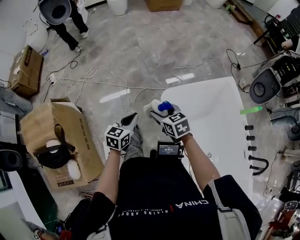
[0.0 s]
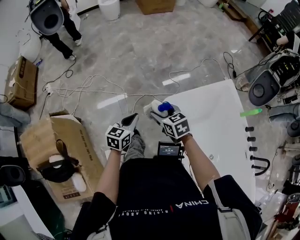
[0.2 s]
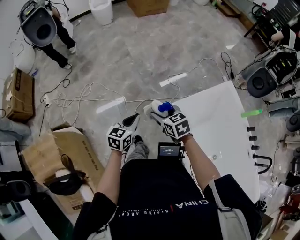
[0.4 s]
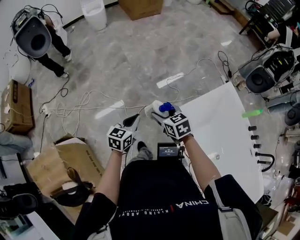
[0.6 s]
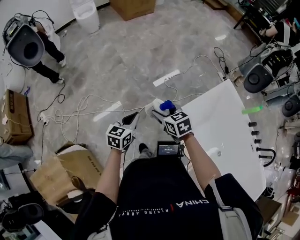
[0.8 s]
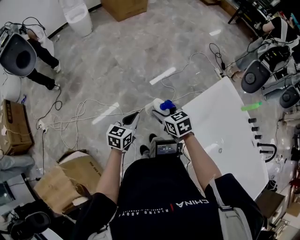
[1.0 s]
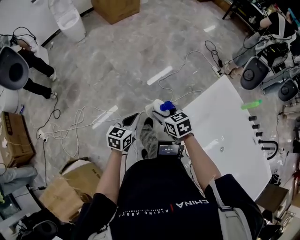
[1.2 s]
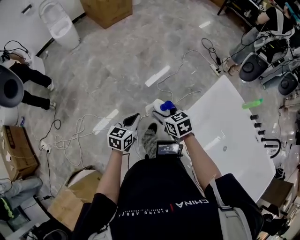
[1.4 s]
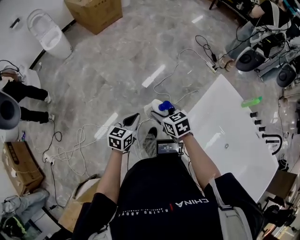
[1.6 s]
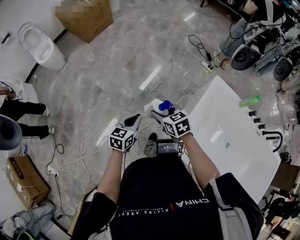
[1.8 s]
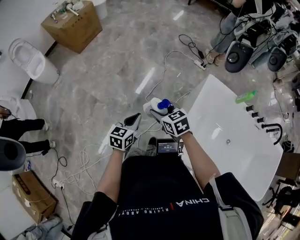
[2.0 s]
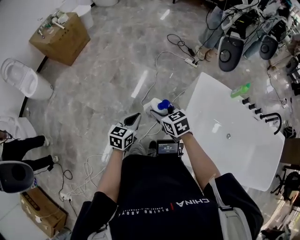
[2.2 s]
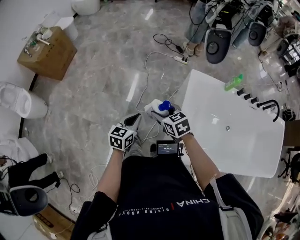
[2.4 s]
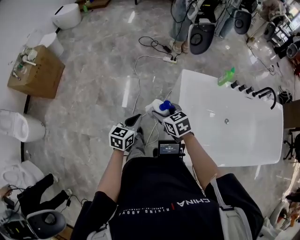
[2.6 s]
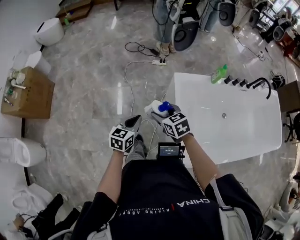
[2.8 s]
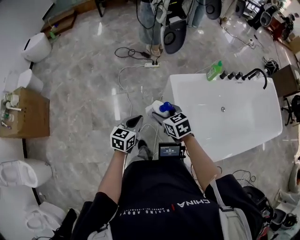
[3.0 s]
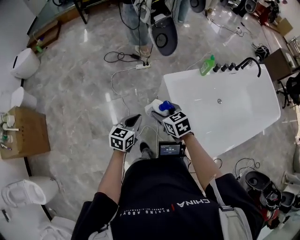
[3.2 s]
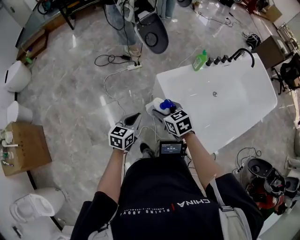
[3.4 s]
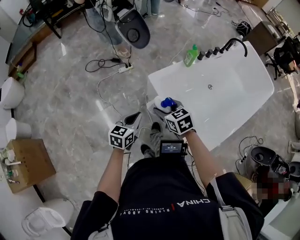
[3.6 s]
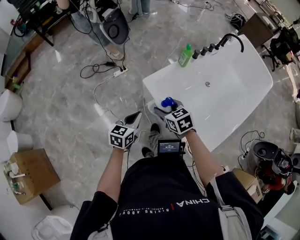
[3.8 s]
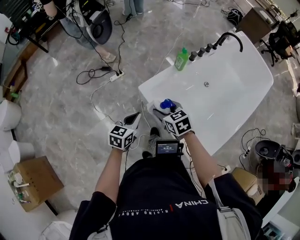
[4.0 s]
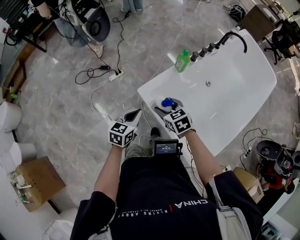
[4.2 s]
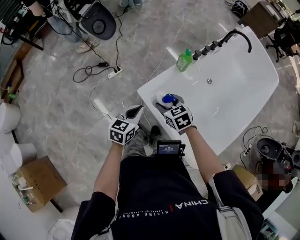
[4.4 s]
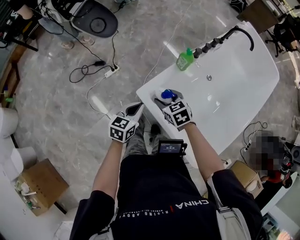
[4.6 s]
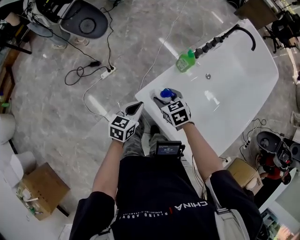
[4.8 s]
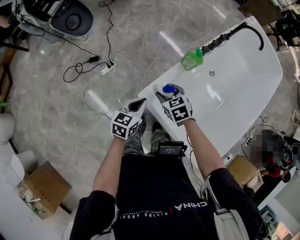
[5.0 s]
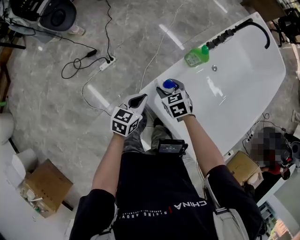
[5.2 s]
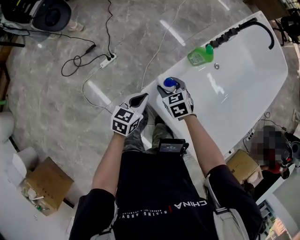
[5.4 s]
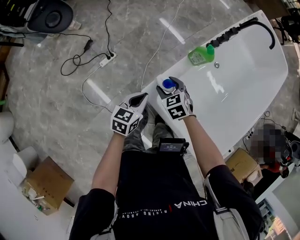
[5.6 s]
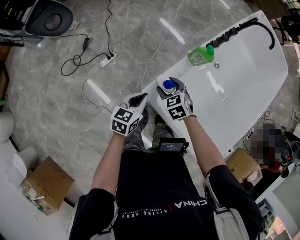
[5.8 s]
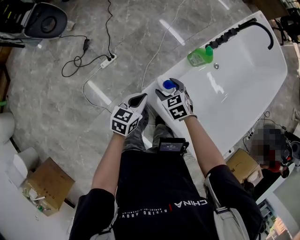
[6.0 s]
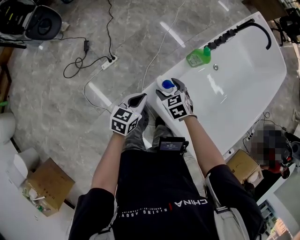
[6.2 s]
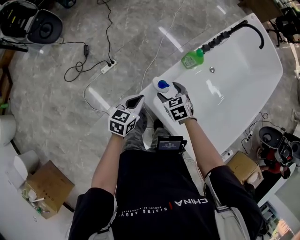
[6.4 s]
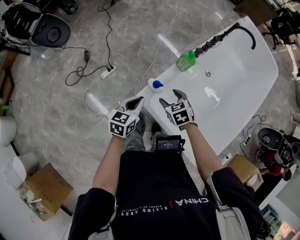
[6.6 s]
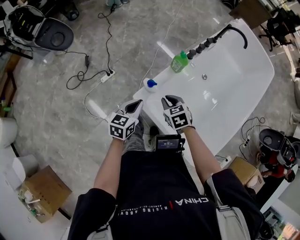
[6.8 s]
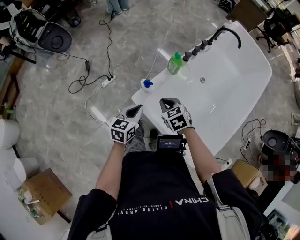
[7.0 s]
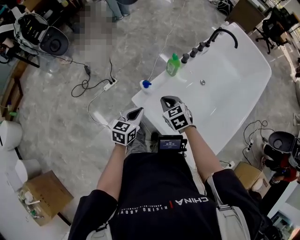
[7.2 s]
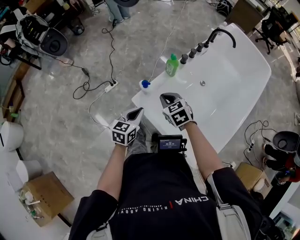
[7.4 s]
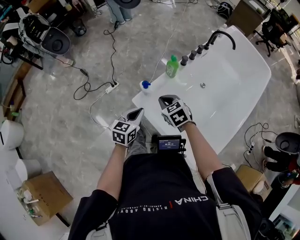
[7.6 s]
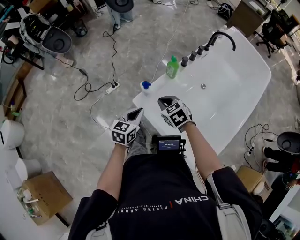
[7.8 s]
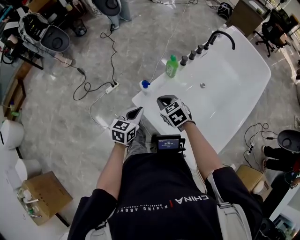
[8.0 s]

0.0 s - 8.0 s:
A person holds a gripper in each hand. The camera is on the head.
0.0 s - 1.6 s: The right gripper changes place by some 40 cm, and changes its angle by about 30 degrees; the left gripper ends up some 40 cm from where it was, and swivels about 30 degrees.
1.6 s - 3.2 s: The pair of grippers is taken about 40 cm. The right gripper swivels about 60 degrees. The left gripper changes its angle by about 60 degrees.
3.2 s - 4.8 s: The left gripper moves approximately 40 cm, and swivels approximately 30 degrees. The right gripper shifts by roughly 40 cm, and changes its angle by about 30 degrees.
4.8 s - 6.4 s: The right gripper moves downward, some 5 cm.
6.4 s - 8.0 s: The left gripper is displaced backward, upward and to the right by roughly 15 cm. Meanwhile the right gripper travels upward and backward by approximately 20 cm, and closes up.

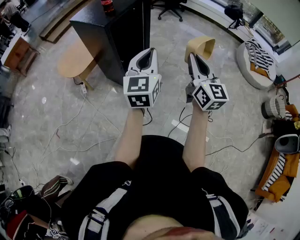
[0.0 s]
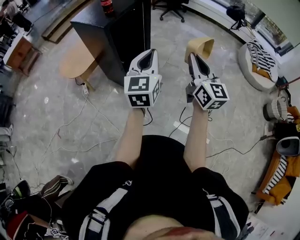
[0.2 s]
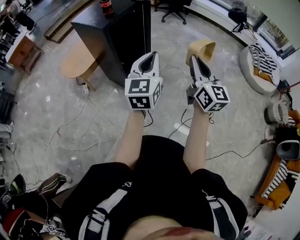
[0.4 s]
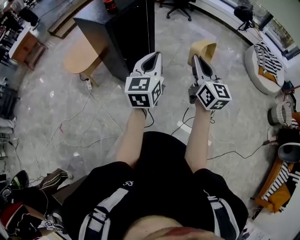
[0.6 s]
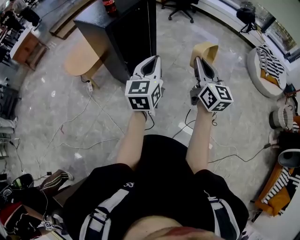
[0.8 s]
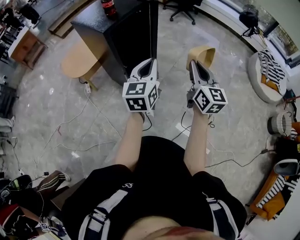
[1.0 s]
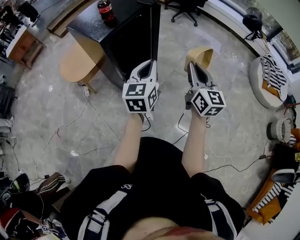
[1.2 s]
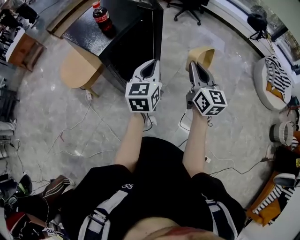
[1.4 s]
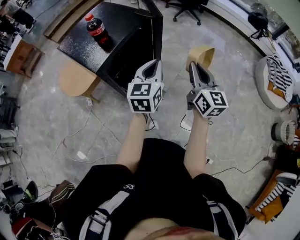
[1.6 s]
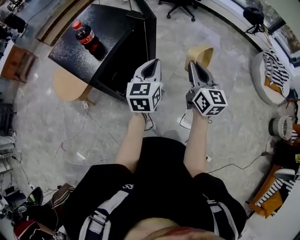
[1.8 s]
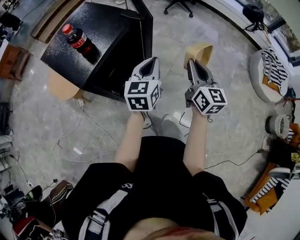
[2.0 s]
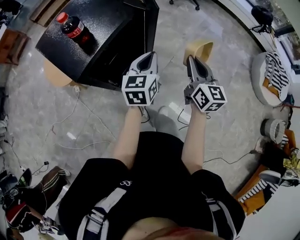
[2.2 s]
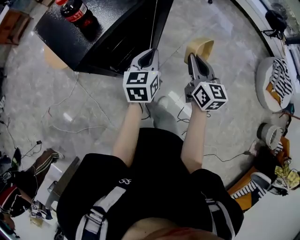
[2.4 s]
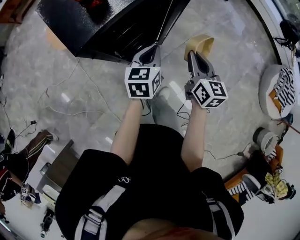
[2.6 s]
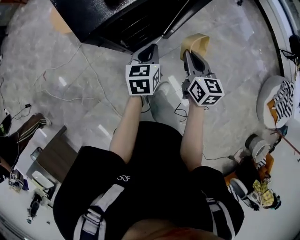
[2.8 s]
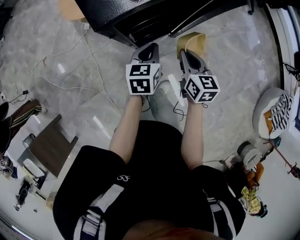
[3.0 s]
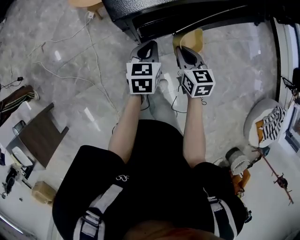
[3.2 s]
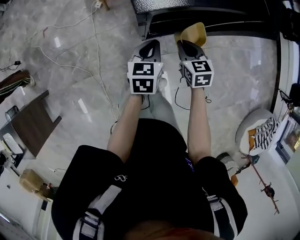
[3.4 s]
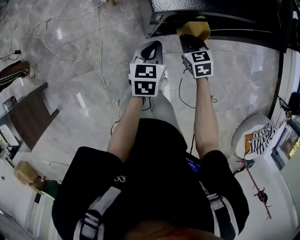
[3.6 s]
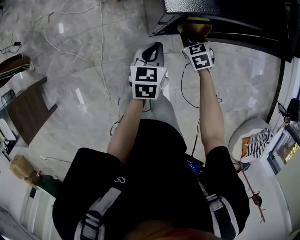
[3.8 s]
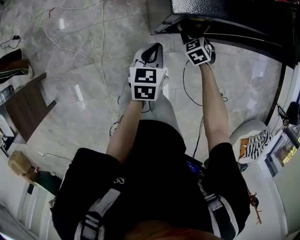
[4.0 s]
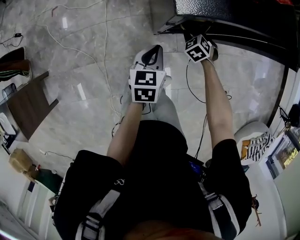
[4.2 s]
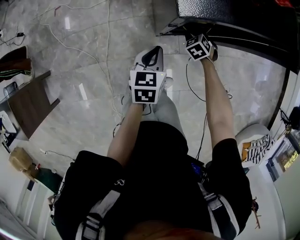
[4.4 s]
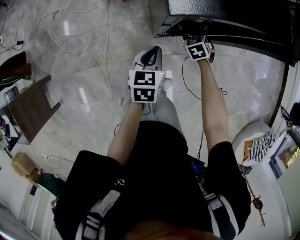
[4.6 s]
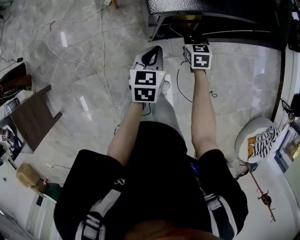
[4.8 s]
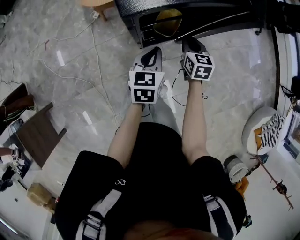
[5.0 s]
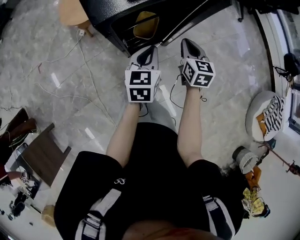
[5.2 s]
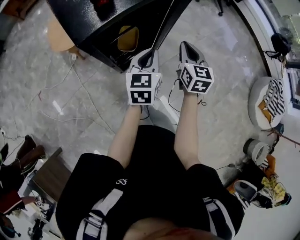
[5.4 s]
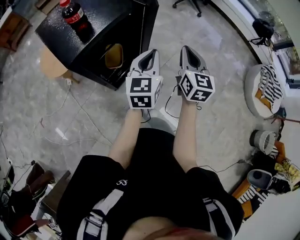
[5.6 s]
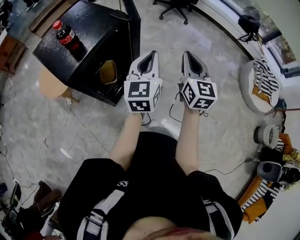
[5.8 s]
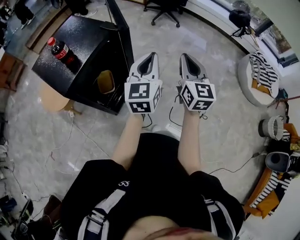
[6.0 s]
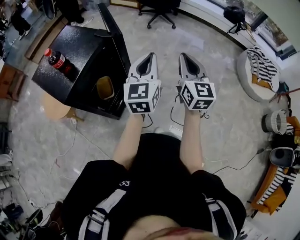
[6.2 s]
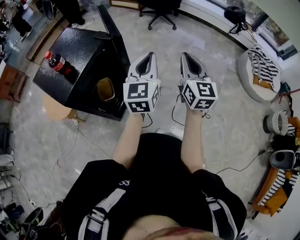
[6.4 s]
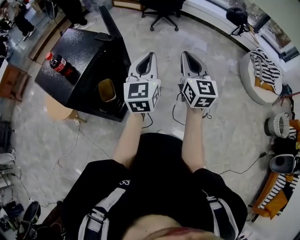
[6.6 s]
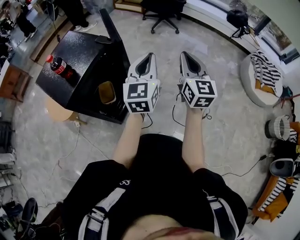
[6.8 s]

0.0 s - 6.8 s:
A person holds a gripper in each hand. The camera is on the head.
0.0 s - 1.4 s: Both grippers move forward, approximately 30 cm.
1.4 s - 2.8 s: The left gripper goes roughly 25 cm downward and forward, and changes its angle by roughly 30 degrees, while the right gripper shifts approximately 25 cm downward, forward and to the left, and rotates some 30 degrees.
2.8 s - 4.0 s: The right gripper ends up roughly 30 cm from where it was, and points its fingers some 30 degrees further downward; the left gripper shifts by approximately 20 cm, and turns by about 20 degrees.
4.0 s - 5.4 s: The left gripper changes place by roughly 25 cm, and rotates about 30 degrees. The right gripper shifts about 25 cm upward, angles its fingers upward, by some 40 degrees, and opens and closes again.
5.4 s - 6.8 s: The right gripper heads to the right and upward, covering about 30 cm, and rotates approximately 30 degrees. Meanwhile the left gripper heads upward and to the right, covering approximately 25 cm, and rotates approximately 30 degrees.

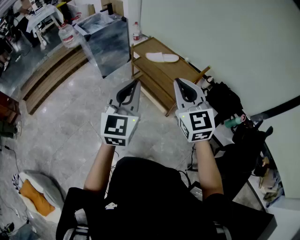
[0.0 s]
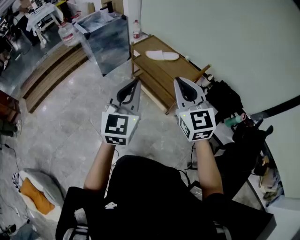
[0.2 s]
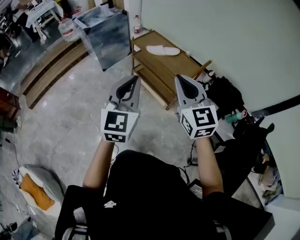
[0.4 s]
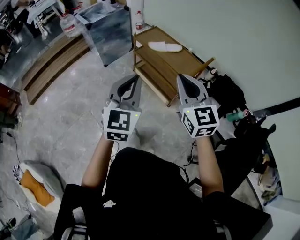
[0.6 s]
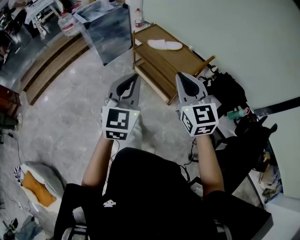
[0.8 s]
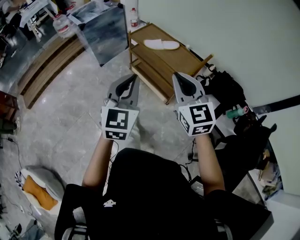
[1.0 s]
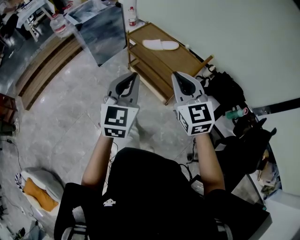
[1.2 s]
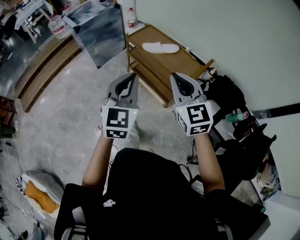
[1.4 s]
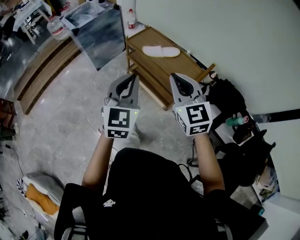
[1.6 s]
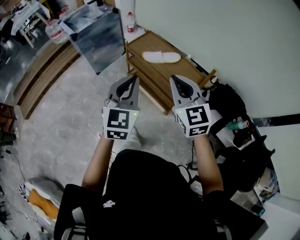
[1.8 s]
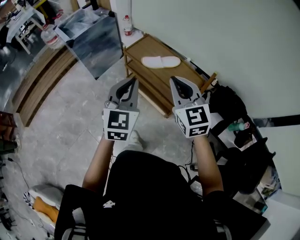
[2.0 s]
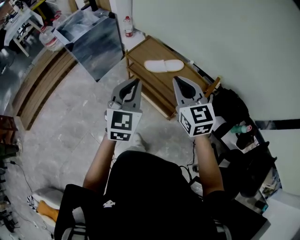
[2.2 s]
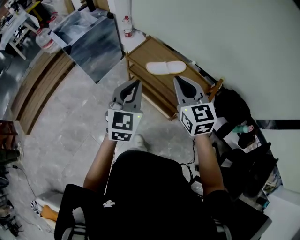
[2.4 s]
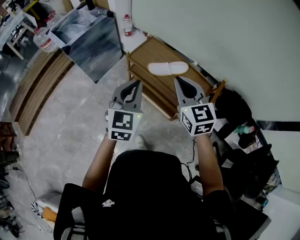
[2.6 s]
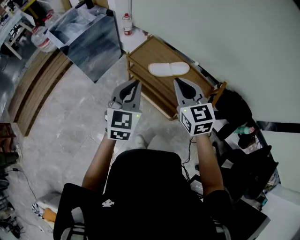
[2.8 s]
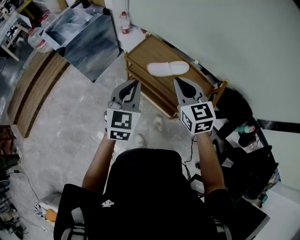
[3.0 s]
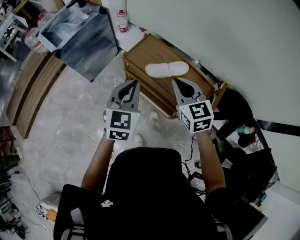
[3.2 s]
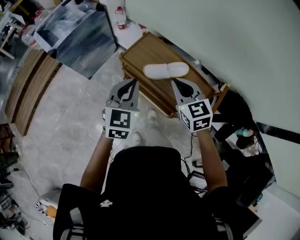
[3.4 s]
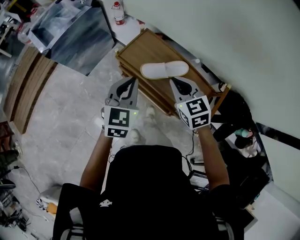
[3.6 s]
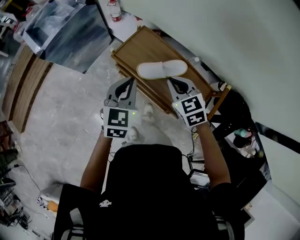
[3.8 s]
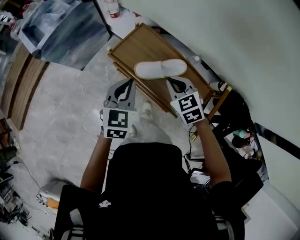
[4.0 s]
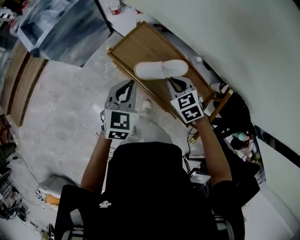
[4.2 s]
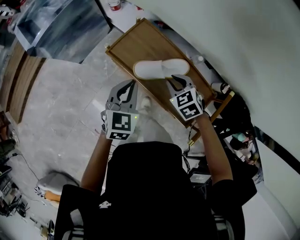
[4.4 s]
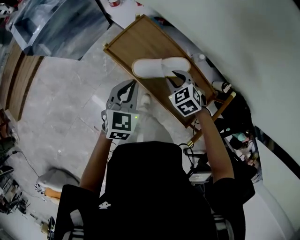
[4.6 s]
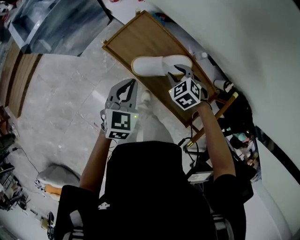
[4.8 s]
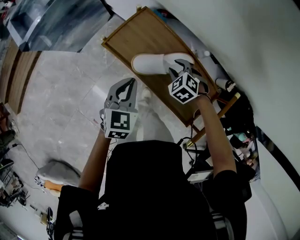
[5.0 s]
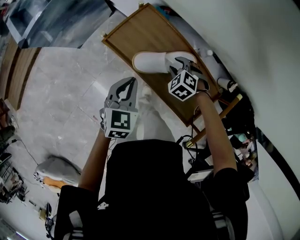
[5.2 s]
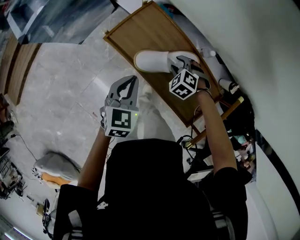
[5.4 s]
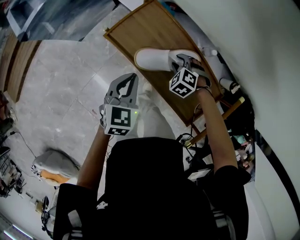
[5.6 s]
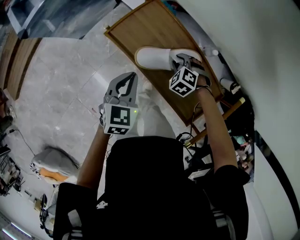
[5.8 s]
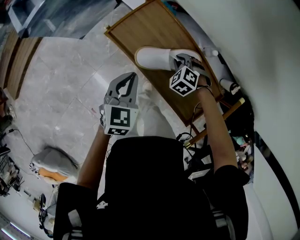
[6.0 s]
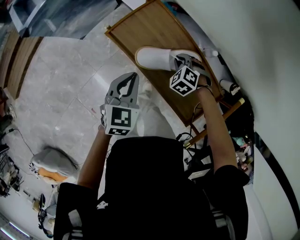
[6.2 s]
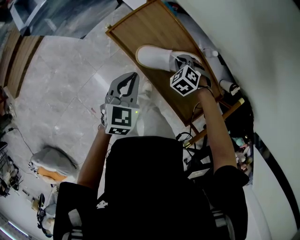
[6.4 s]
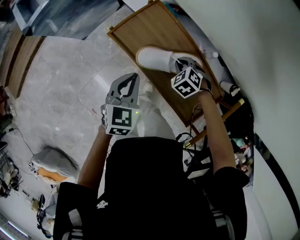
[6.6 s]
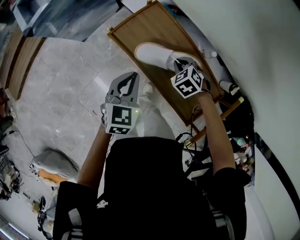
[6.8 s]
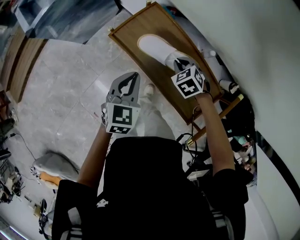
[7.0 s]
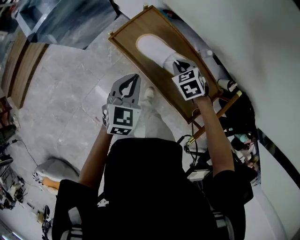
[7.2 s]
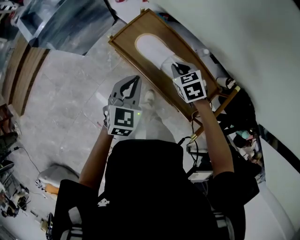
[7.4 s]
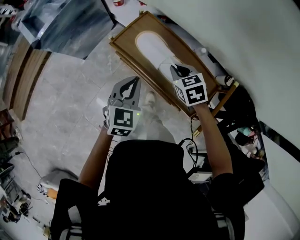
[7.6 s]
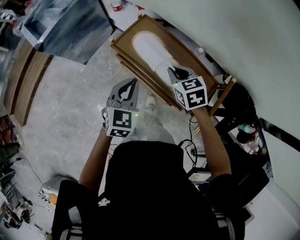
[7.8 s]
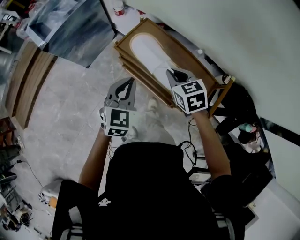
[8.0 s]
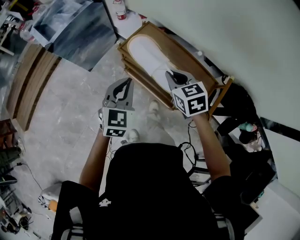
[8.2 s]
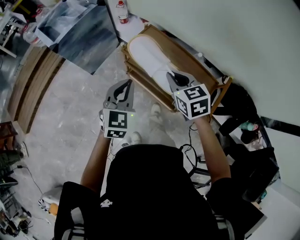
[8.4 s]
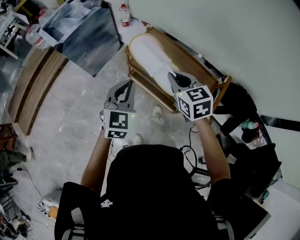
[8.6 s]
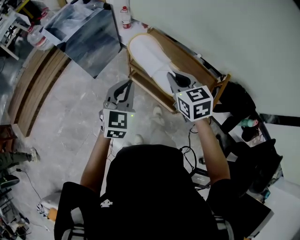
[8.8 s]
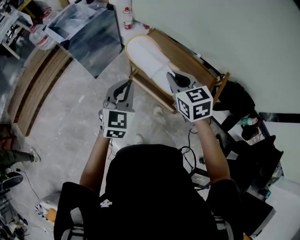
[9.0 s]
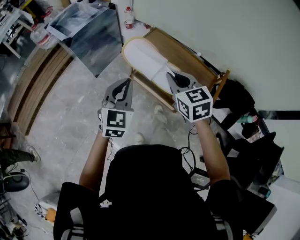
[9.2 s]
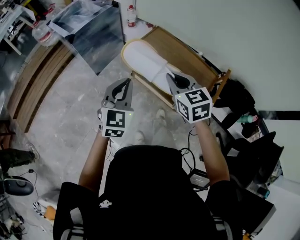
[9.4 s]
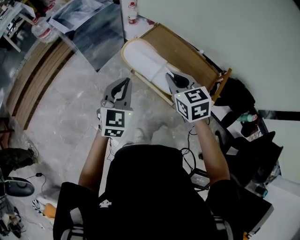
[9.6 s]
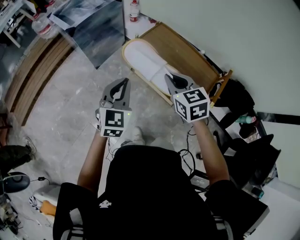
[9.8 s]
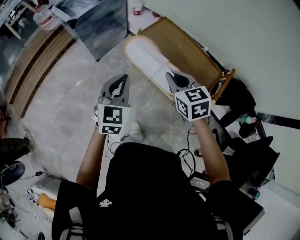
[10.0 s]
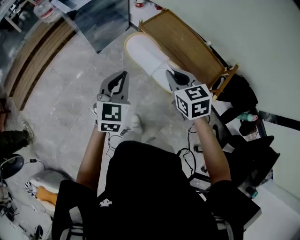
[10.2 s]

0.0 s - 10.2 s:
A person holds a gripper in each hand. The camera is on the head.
0.0 s - 1.4 s: The grippers both shift forward and downward by roughly 15 cm.
1.4 s - 3.0 s: Both grippers move forward, some 30 cm.
3.0 s - 4.4 s: The right gripper is displaced downward and forward by approximately 30 cm, and tips its fingers downward by roughly 30 degrees, while the left gripper travels downward, forward and to the right by approximately 25 cm.
4.4 s - 5.8 s: The left gripper travels downward by roughly 10 cm; the right gripper is displaced downward by approximately 15 cm, and rotates about 30 degrees.
5.8 s - 7.2 s: The right gripper goes approximately 10 cm upward, rotates approximately 30 degrees, and closes up; the left gripper moves upward, approximately 5 cm.
7.2 s - 8.8 s: The left gripper goes roughly 25 cm backward, upward and to the left. Meanwhile the right gripper goes roughly 35 cm upward, backward and to the left, and tilts its fingers roughly 30 degrees upward.
8.8 s - 10.2 s: The two grippers go about 10 cm backward and to the left.
